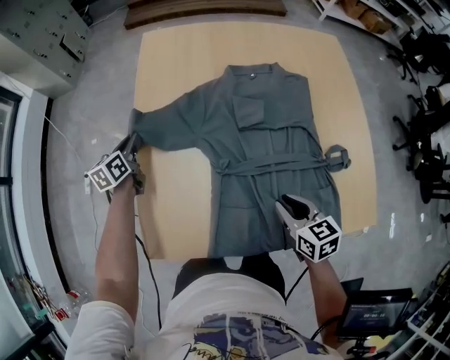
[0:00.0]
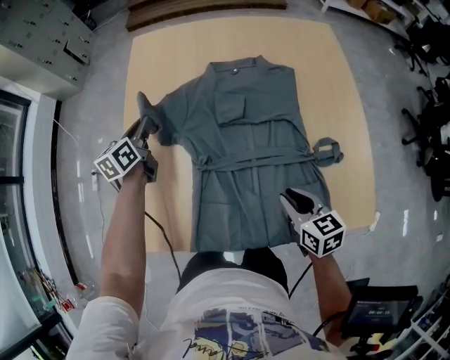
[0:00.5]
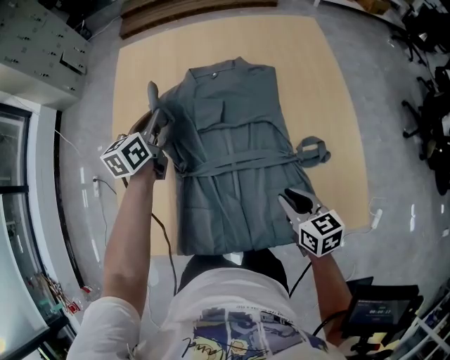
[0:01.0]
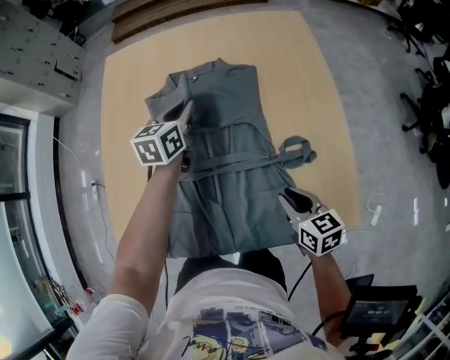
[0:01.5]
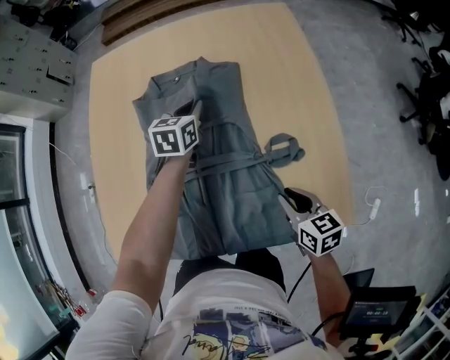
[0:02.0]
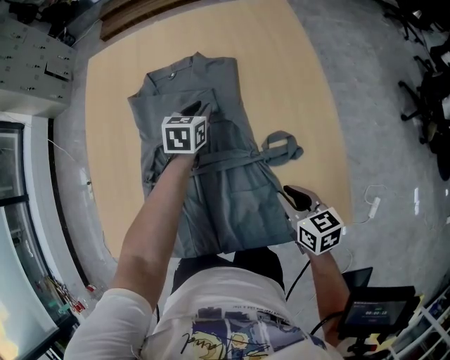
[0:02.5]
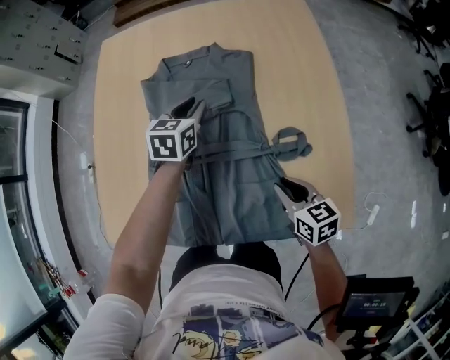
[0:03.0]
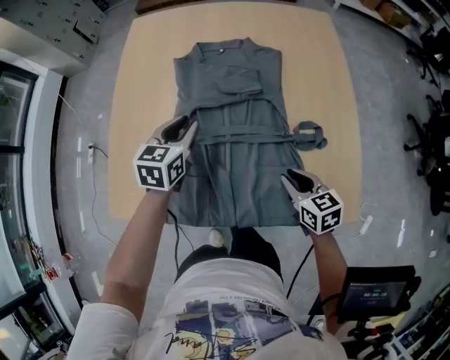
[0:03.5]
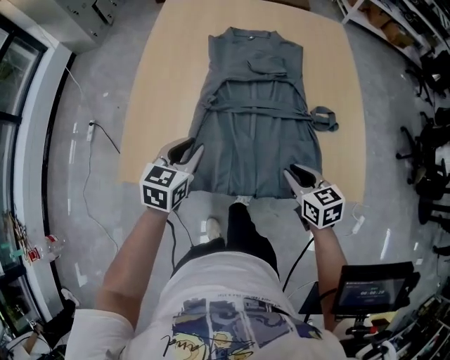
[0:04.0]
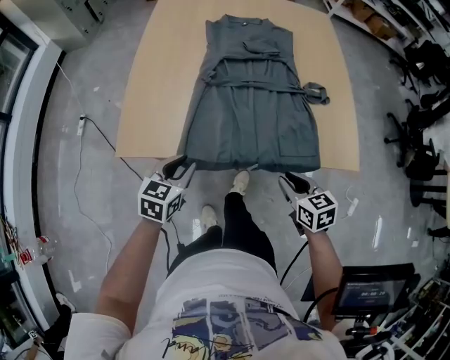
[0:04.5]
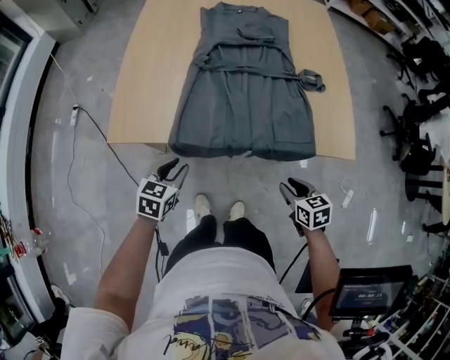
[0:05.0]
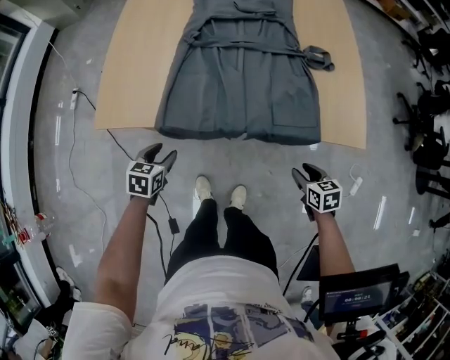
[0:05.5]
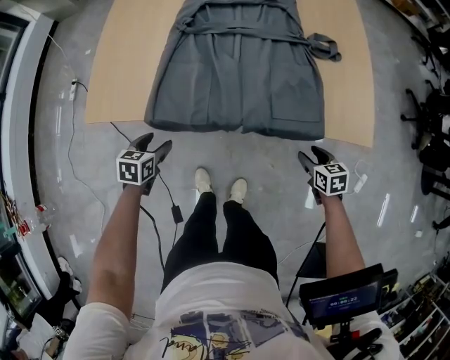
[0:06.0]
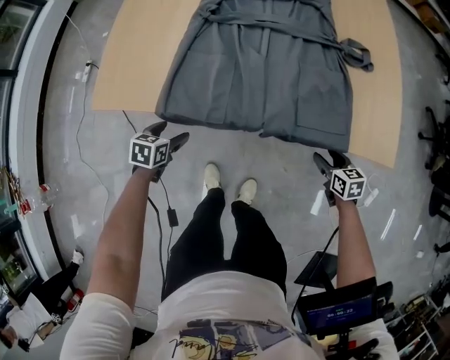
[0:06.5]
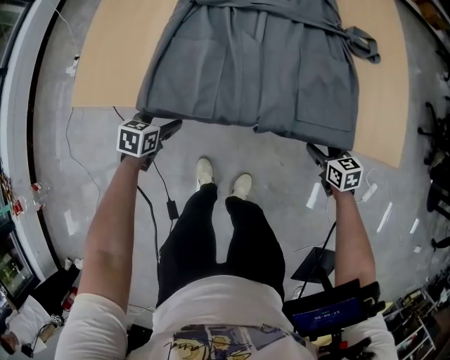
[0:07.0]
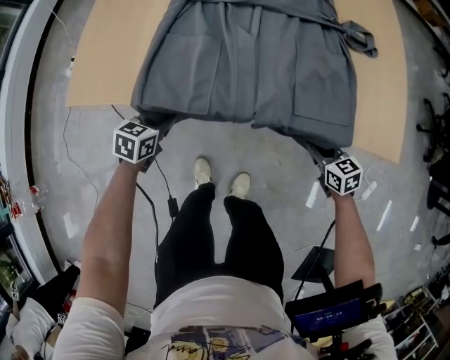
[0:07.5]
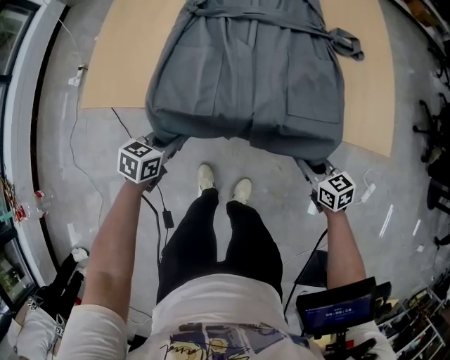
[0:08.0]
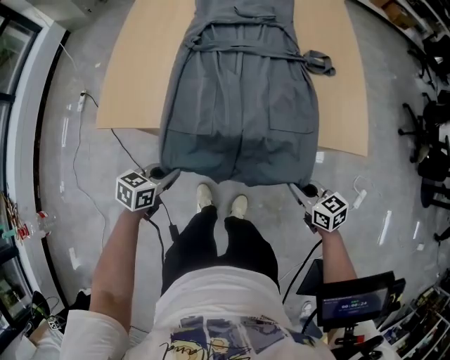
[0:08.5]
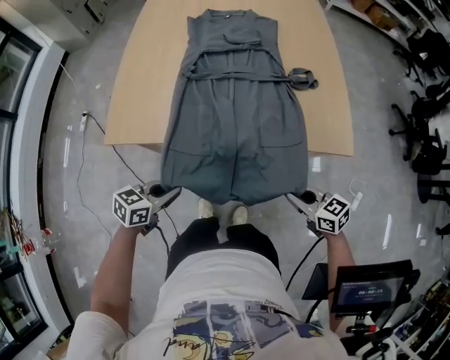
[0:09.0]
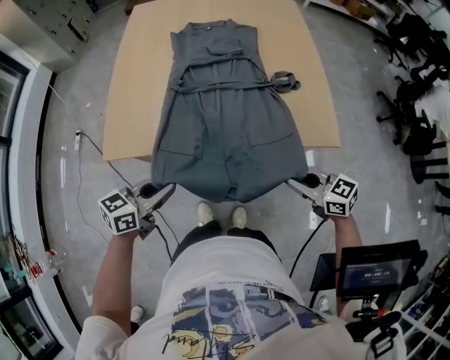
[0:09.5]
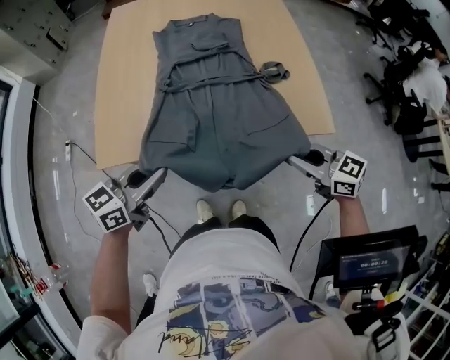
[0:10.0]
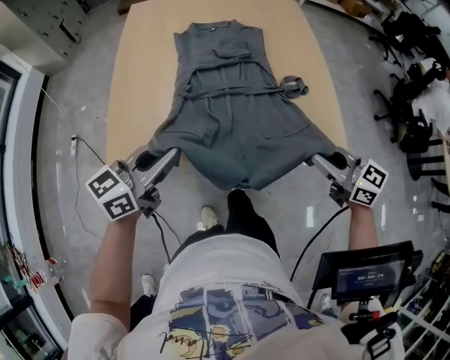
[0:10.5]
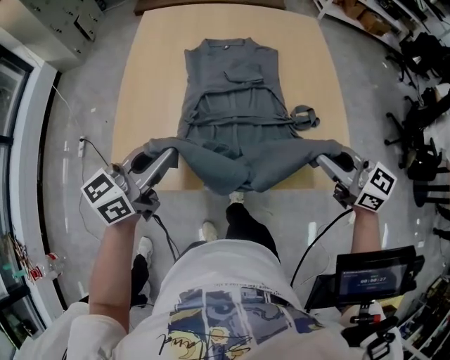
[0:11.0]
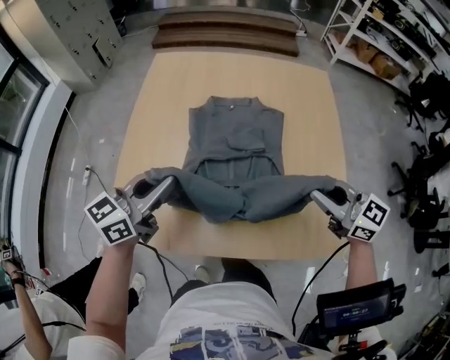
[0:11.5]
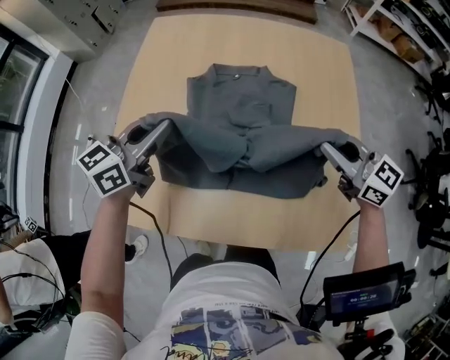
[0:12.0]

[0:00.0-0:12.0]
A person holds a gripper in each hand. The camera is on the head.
0:00.0 to 0:02.0: The right gripper is displaced to the right by roughly 25 cm, while the left gripper heads to the right, covering approximately 50 cm, and turns by some 30 degrees.
0:02.0 to 0:04.0: The left gripper shifts some 40 cm backward and to the left; the right gripper heads to the left and backward, covering about 15 cm.
0:04.0 to 0:06.0: The left gripper goes approximately 30 cm downward and backward, changes its angle by about 20 degrees, and opens up; the right gripper goes roughly 30 cm downward, to the right and backward, and opens up.
0:06.0 to 0:08.0: The right gripper goes some 5 cm to the left, travels downward and back again, roughly 10 cm each way, changes its angle by about 20 degrees, and closes up, while the left gripper travels to the right by roughly 5 cm, reaches some 10 cm downward, then returns, and closes up.
0:08.0 to 0:10.0: Both grippers travel together upward, roughly 30 cm. The left gripper tilts its fingers about 30 degrees upward.
0:10.0 to 0:12.0: Both grippers travel together forward, roughly 40 cm. The left gripper turns by about 20 degrees.

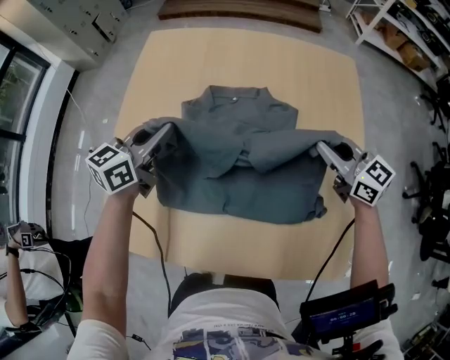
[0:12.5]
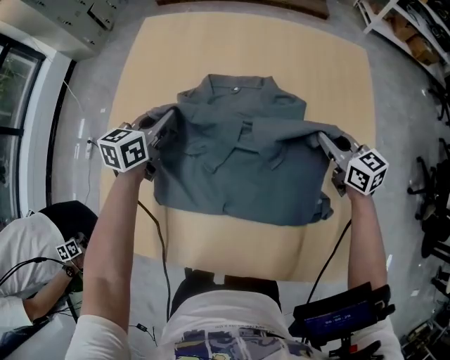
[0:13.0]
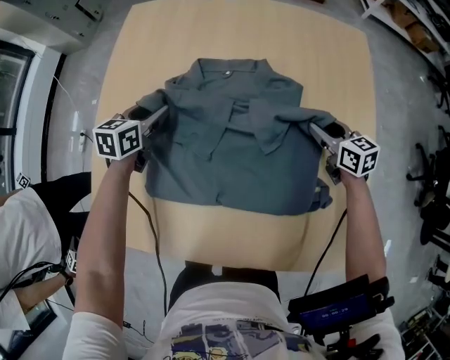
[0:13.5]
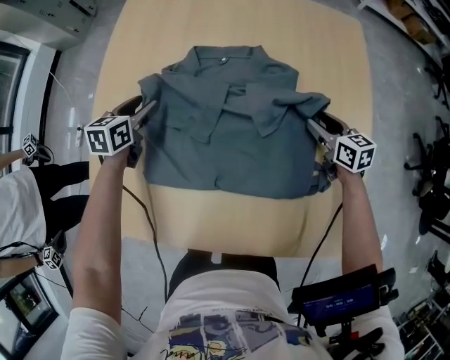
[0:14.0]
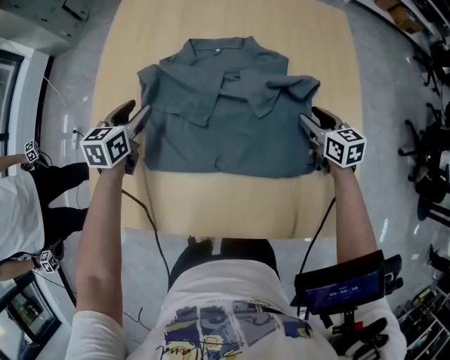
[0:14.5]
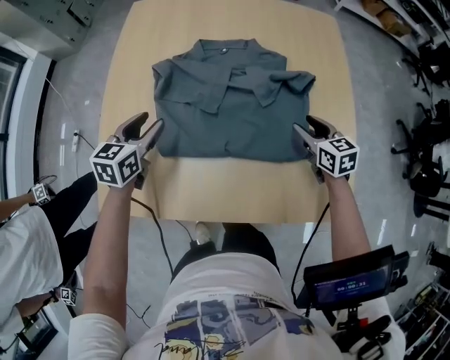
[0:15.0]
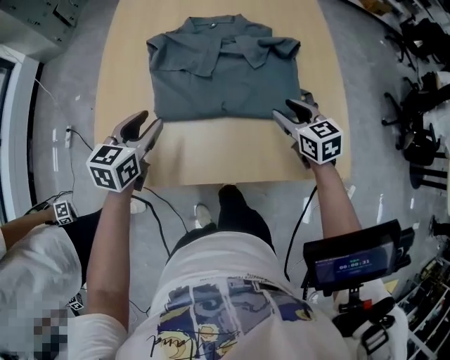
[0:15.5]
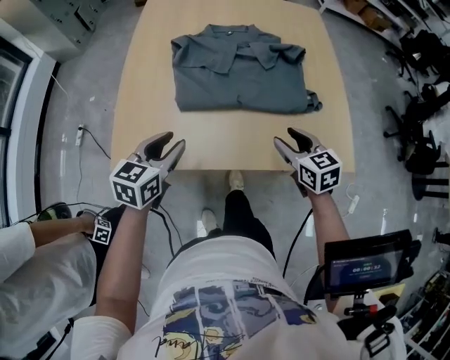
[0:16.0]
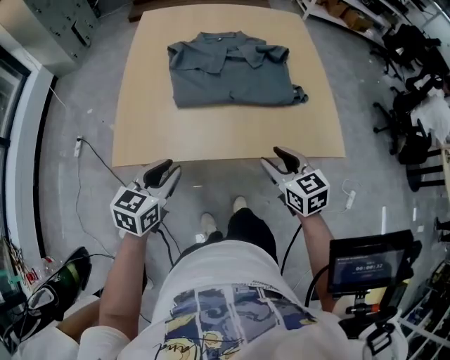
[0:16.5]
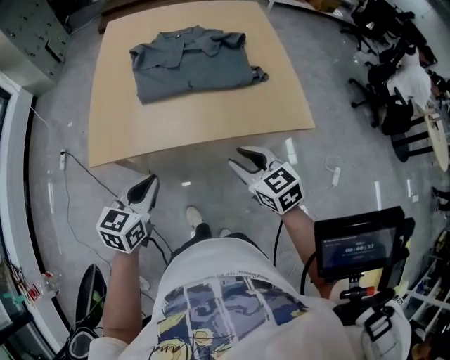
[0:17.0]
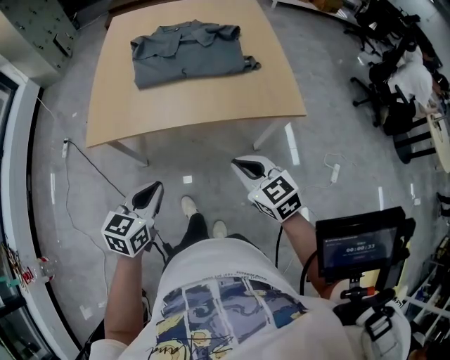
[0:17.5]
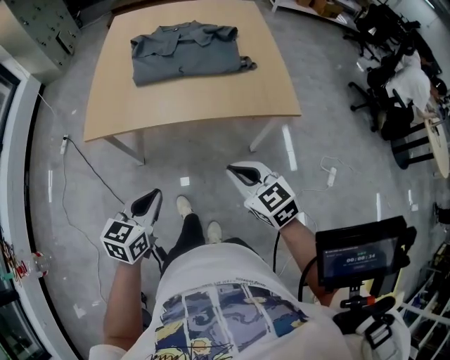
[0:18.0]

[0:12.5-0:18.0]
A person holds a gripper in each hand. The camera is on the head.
0:12.5 to 0:14.5: The right gripper moves downward and to the right, roughly 20 cm, turns by roughly 30 degrees, and opens its fingers, while the left gripper shifts about 15 cm downward, turns by some 30 degrees, and opens up.
0:14.5 to 0:16.0: The left gripper shifts roughly 30 cm backward. Meanwhile the right gripper is displaced backward and to the left by approximately 35 cm.
0:16.0 to 0:18.0: Both grippers travel together backward, about 35 cm. The left gripper closes; the right gripper closes up.

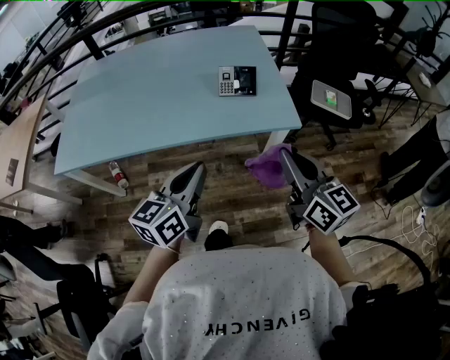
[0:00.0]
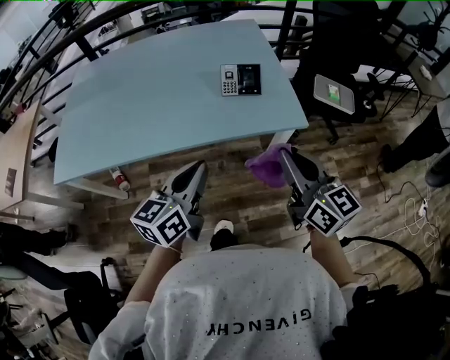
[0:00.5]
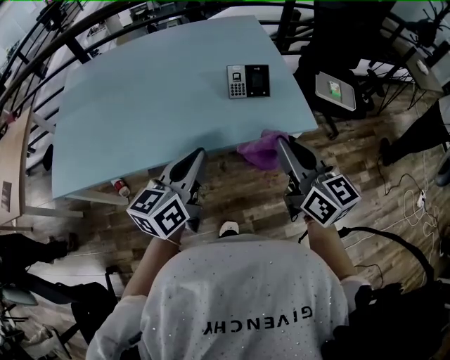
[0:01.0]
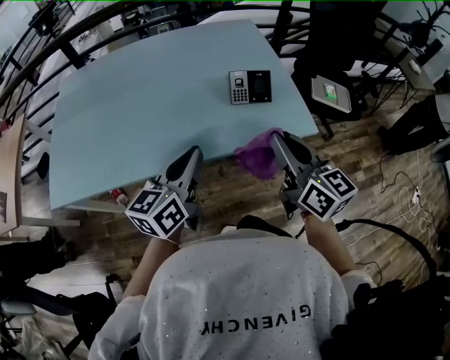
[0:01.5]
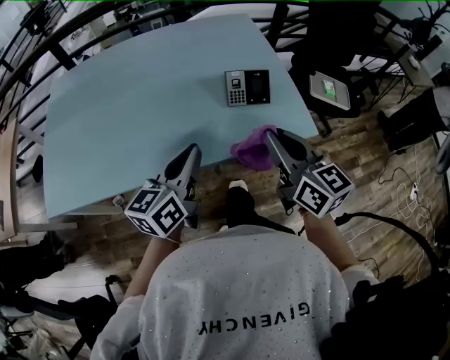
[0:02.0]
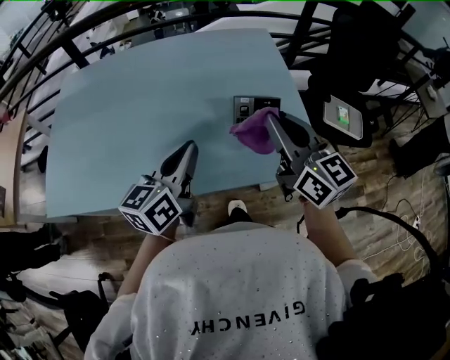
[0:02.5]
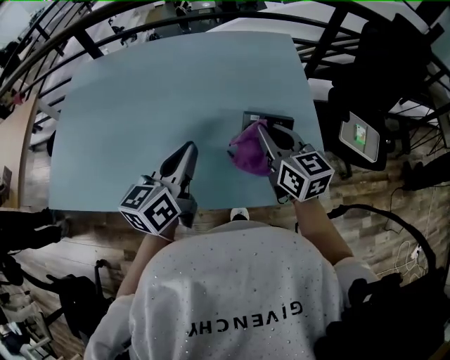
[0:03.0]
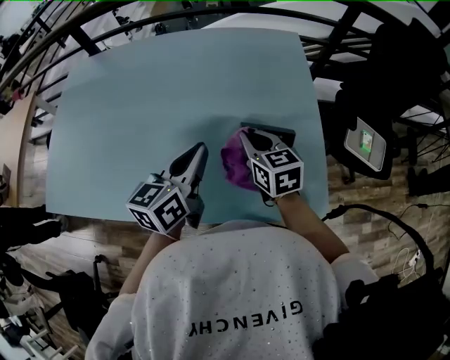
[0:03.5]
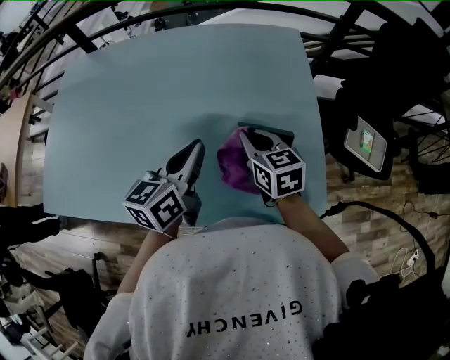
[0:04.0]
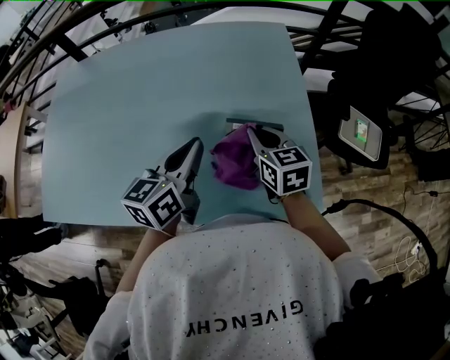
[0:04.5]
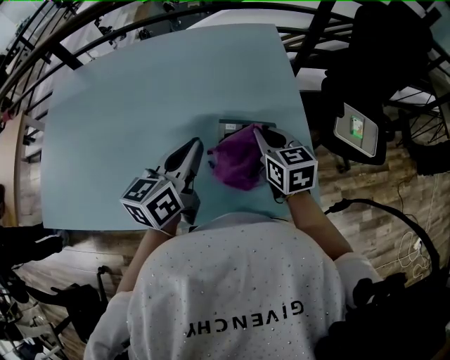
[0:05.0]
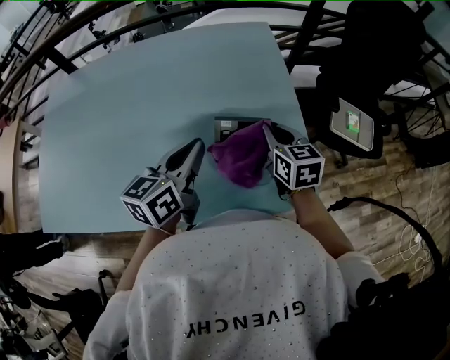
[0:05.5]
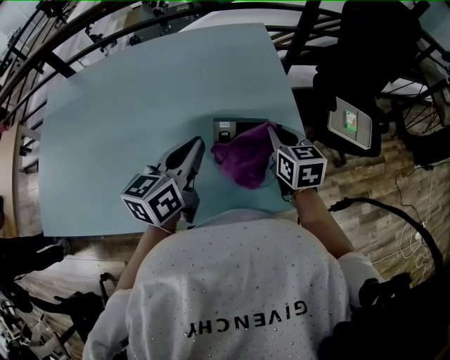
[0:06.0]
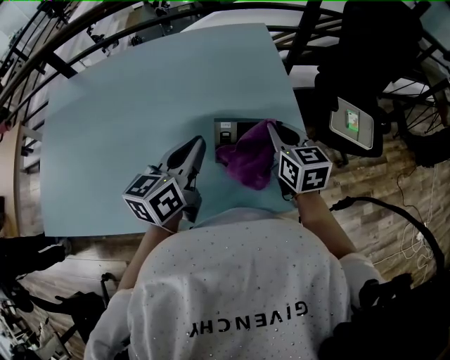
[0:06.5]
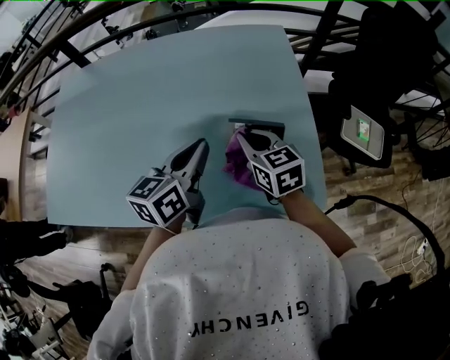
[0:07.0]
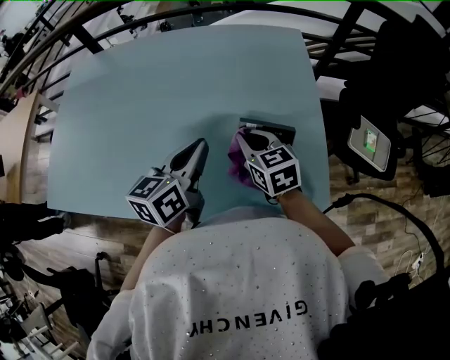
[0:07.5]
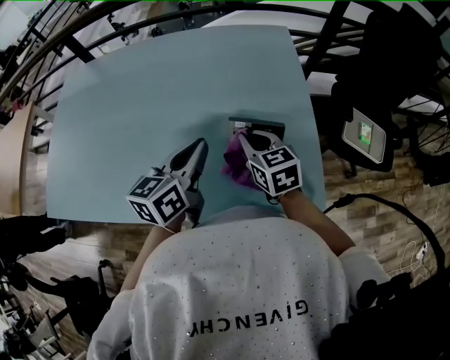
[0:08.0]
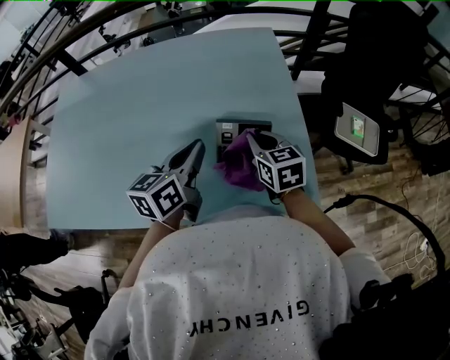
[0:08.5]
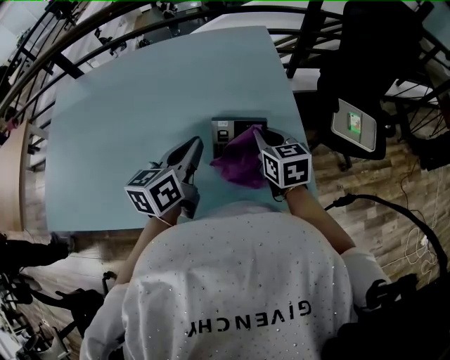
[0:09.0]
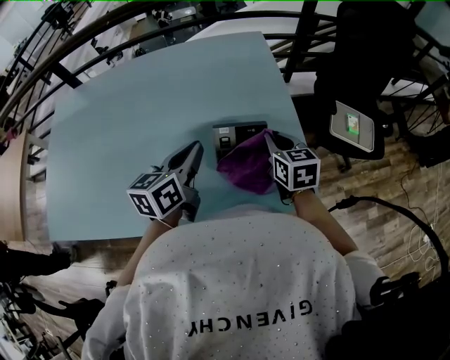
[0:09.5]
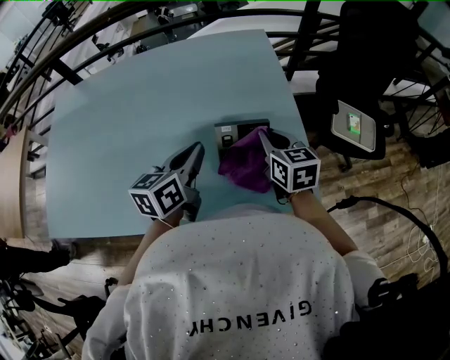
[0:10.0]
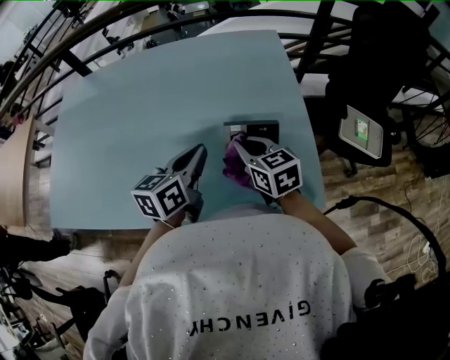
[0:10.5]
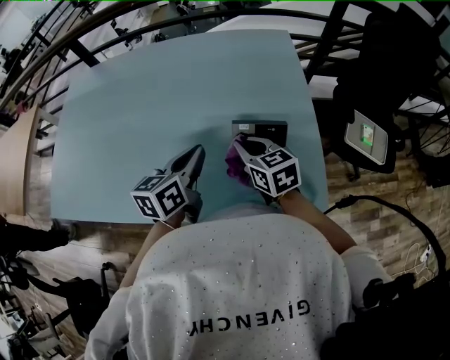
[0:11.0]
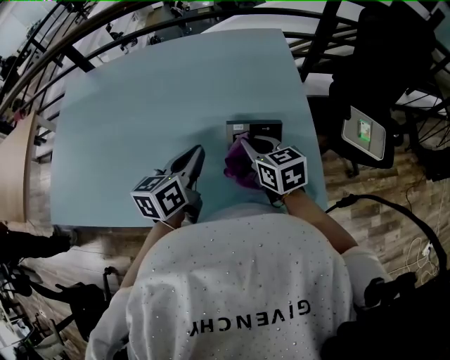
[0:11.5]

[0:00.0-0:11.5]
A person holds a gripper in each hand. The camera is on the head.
0:00.0 to 0:02.0: Both grippers travel together forward and to the left, roughly 20 cm.
0:02.0 to 0:04.0: The right gripper heads forward and downward, covering roughly 30 cm, and turns by about 30 degrees; the left gripper is displaced forward by approximately 25 cm.
0:04.0 to 0:06.0: The left gripper moves to the right, about 5 cm; the right gripper is displaced to the right by some 15 cm.
0:06.0 to 0:07.5: The left gripper is displaced to the left by about 5 cm; the right gripper is displaced to the left by roughly 15 cm, and swivels some 20 degrees.
0:07.5 to 0:09.5: The left gripper shifts by some 5 cm, while the right gripper heads to the right, covering approximately 15 cm, and swivels about 20 degrees.
0:09.5 to 0:11.5: The right gripper is displaced to the left by about 10 cm.
